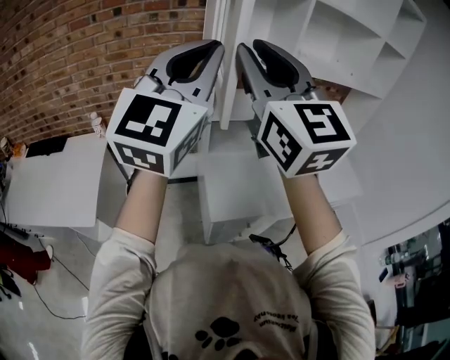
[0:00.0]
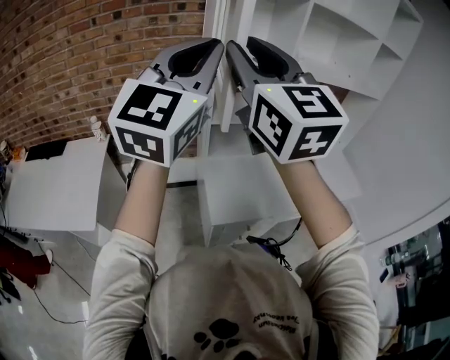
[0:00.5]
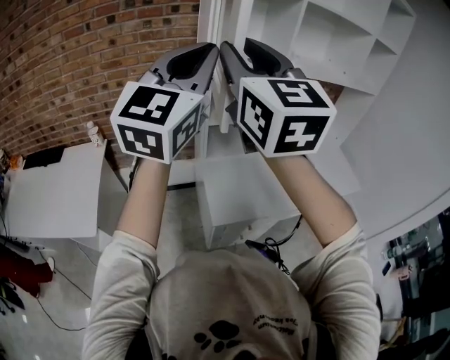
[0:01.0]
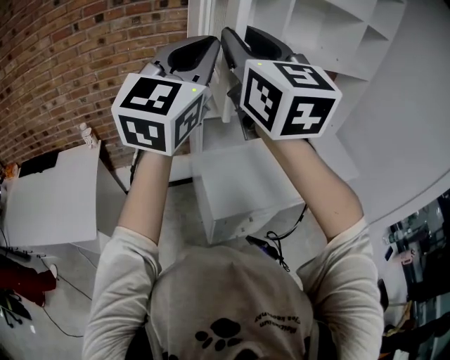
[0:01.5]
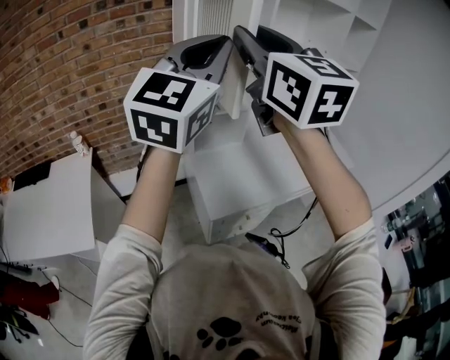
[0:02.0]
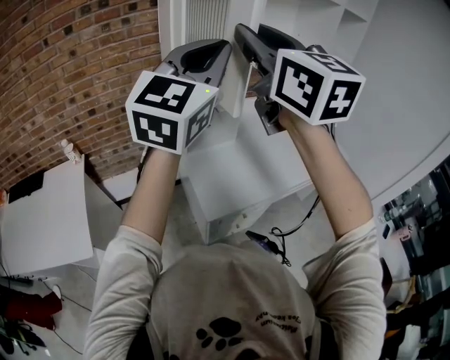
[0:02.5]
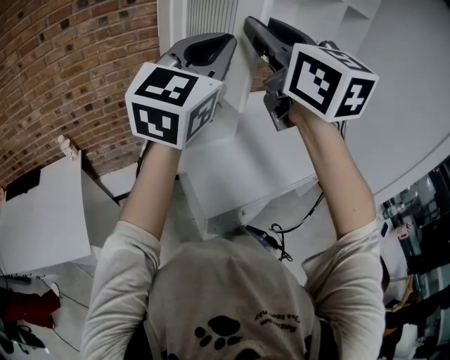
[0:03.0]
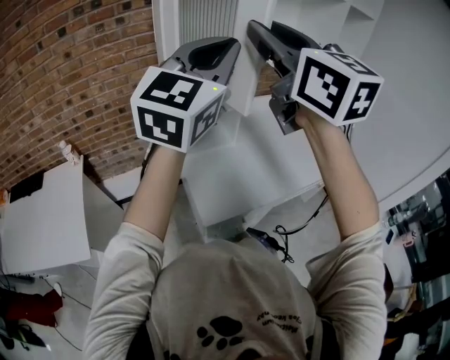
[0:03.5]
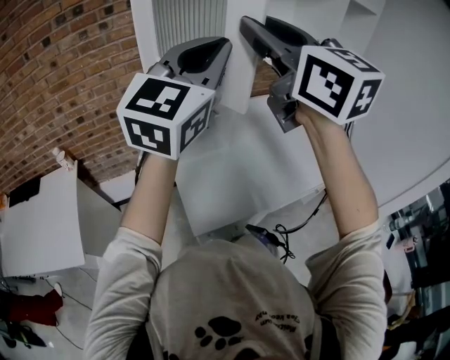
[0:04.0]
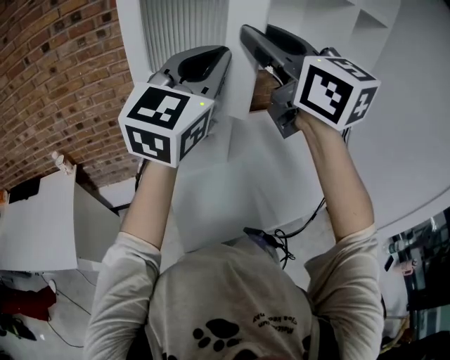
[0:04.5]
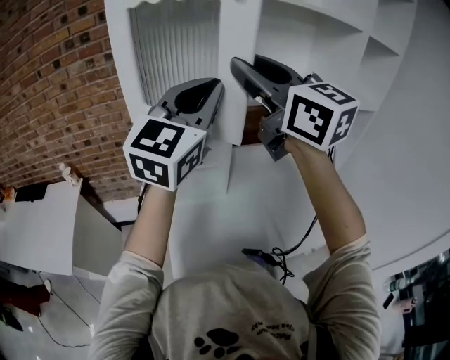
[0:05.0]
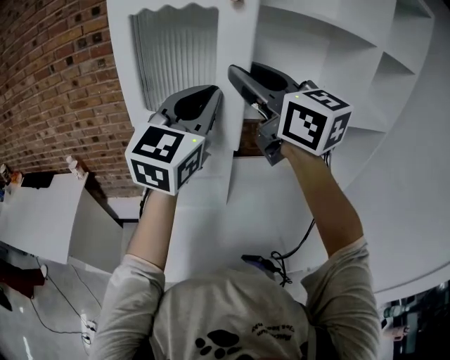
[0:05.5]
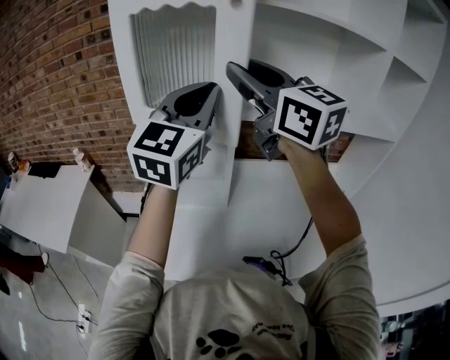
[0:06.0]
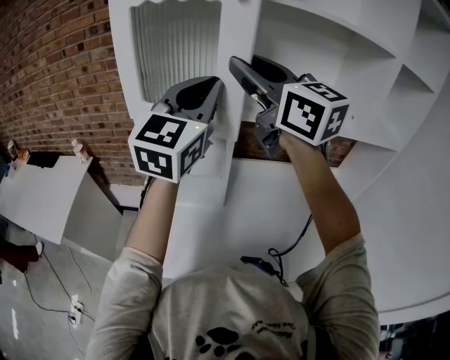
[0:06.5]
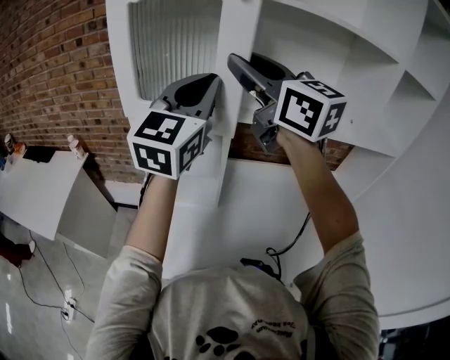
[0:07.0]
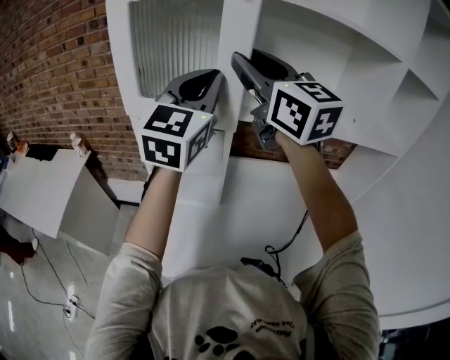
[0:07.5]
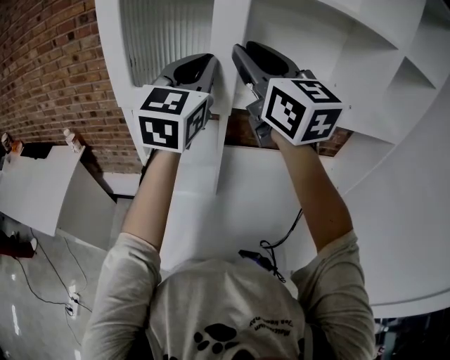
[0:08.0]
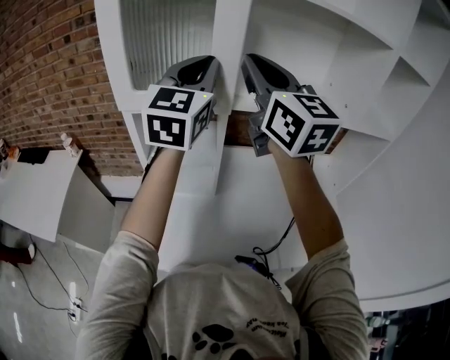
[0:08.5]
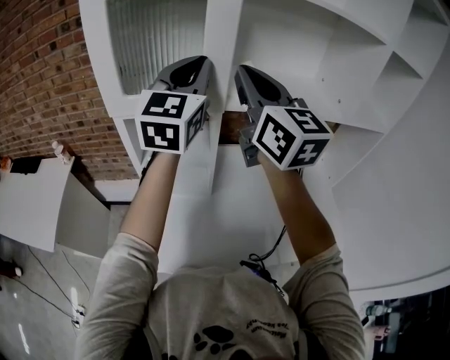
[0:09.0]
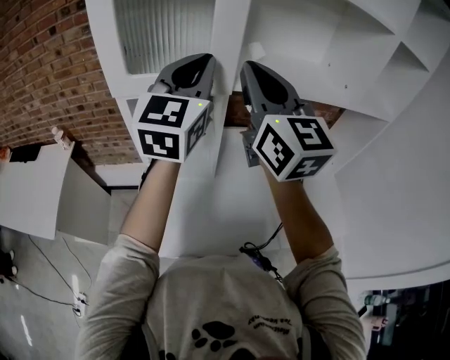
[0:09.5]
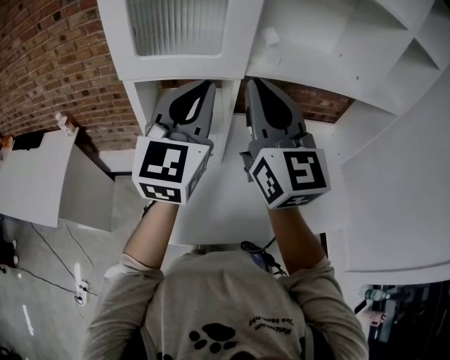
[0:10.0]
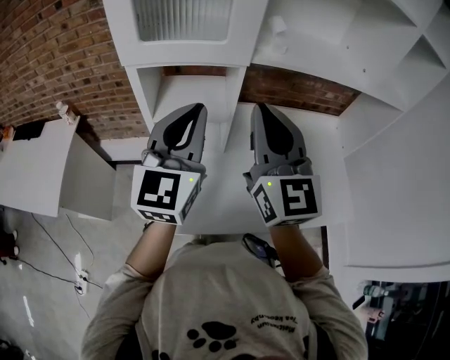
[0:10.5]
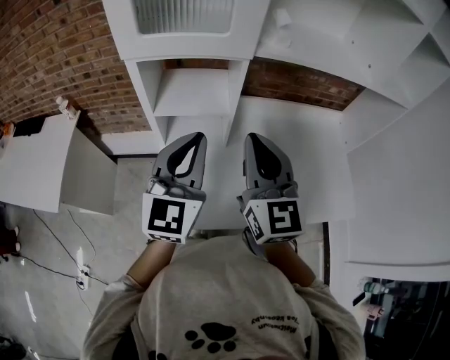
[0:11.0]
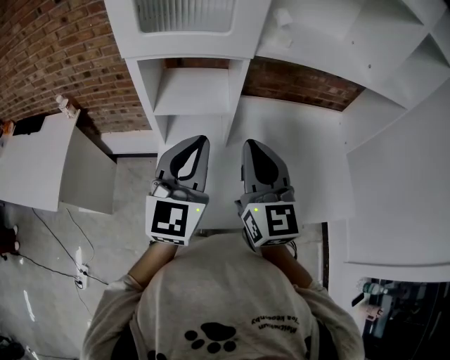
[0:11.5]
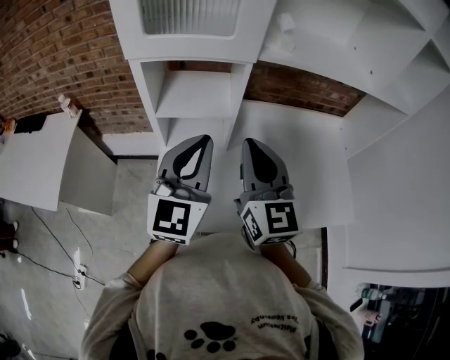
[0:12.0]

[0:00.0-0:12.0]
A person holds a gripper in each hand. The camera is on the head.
0.0 to 2.0 s: The left gripper changes place by approximately 5 cm.
2.0 to 4.0 s: The right gripper moves to the right and forward, approximately 15 cm. Meanwhile the left gripper goes some 15 cm forward and to the right.
4.0 to 6.0 s: Both grippers move forward and to the right, roughly 15 cm. The right gripper swivels some 30 degrees. Meanwhile the left gripper rotates some 20 degrees.
6.0 to 8.0 s: The right gripper changes place by approximately 5 cm. Meanwhile the left gripper moves forward, roughly 5 cm.
8.0 to 10.0 s: The right gripper travels downward and backward by approximately 10 cm, and closes its fingers; the left gripper is displaced backward and downward by some 10 cm.
10.0 to 12.0 s: The right gripper travels downward by roughly 15 cm, while the left gripper is displaced downward and backward by roughly 15 cm.

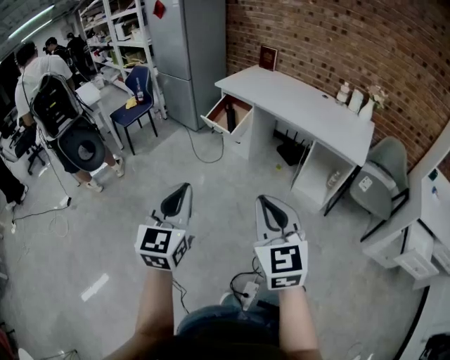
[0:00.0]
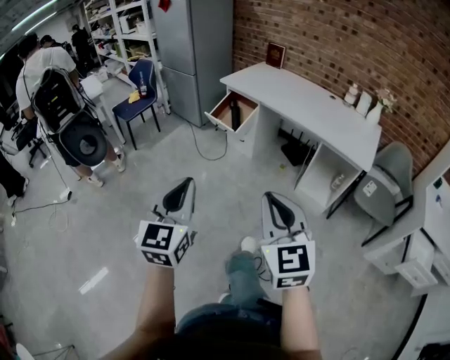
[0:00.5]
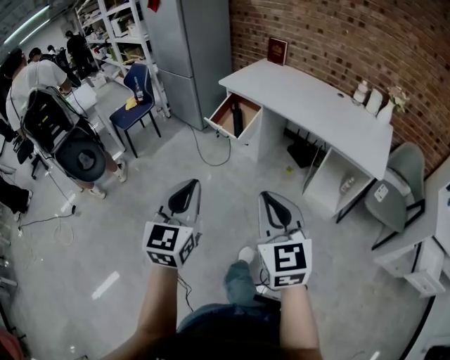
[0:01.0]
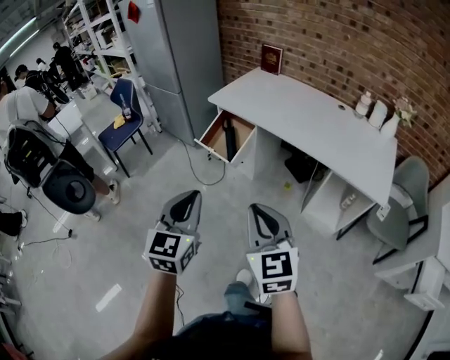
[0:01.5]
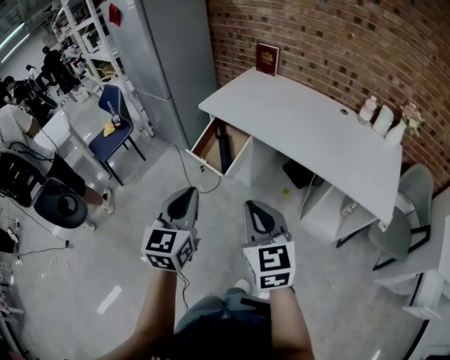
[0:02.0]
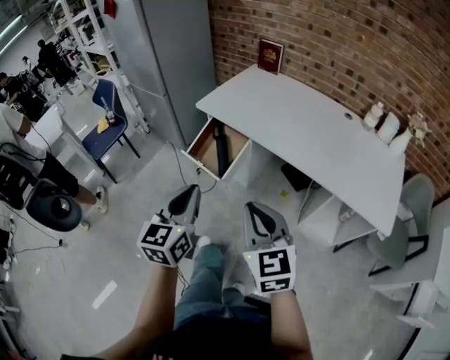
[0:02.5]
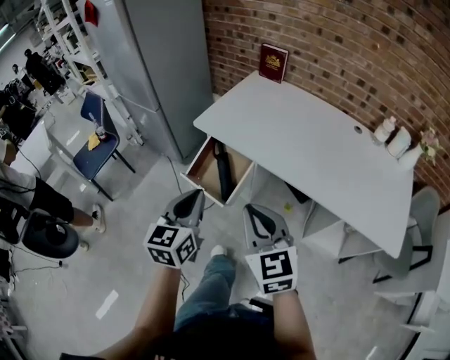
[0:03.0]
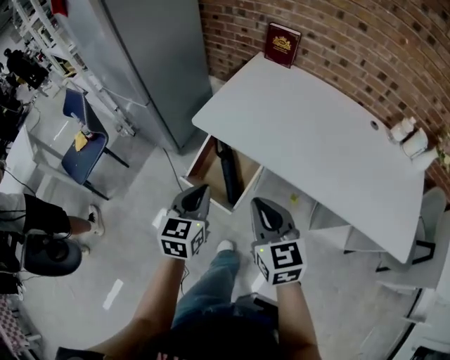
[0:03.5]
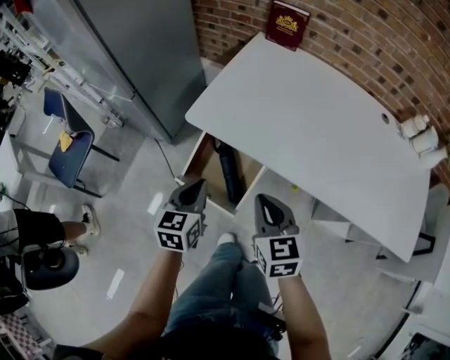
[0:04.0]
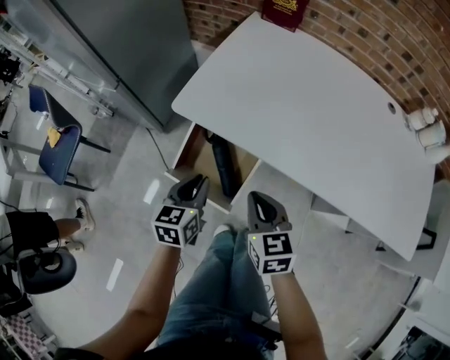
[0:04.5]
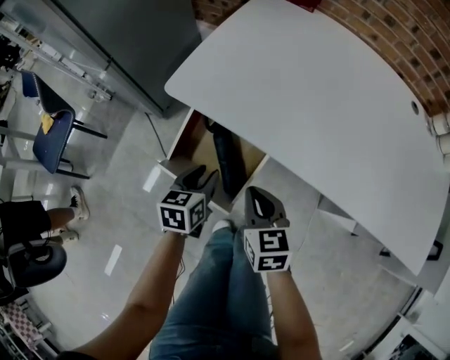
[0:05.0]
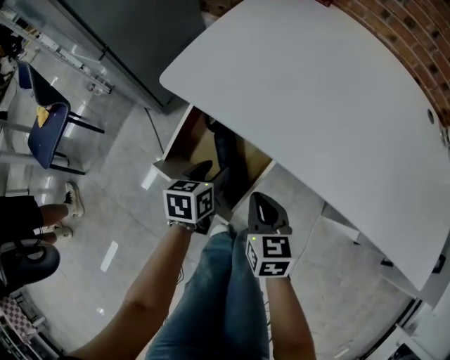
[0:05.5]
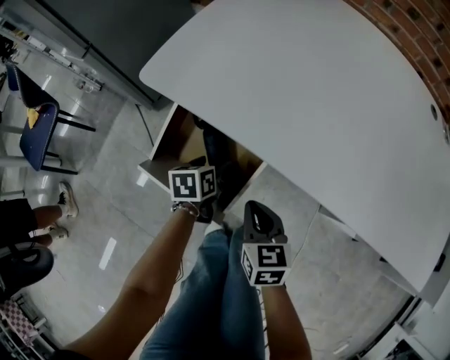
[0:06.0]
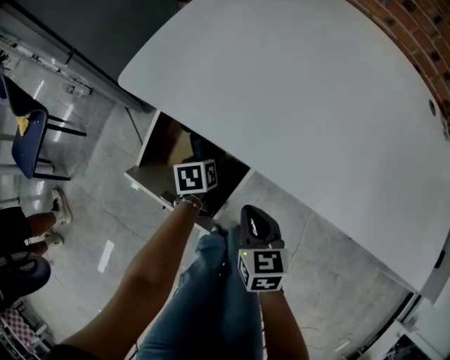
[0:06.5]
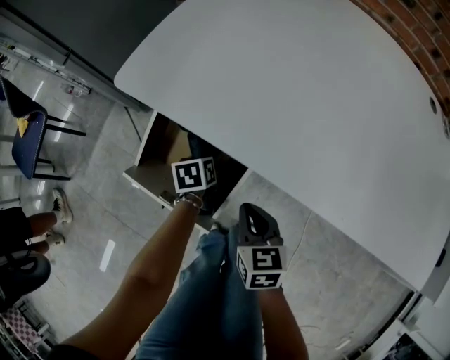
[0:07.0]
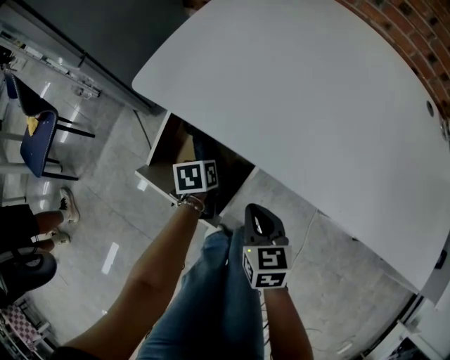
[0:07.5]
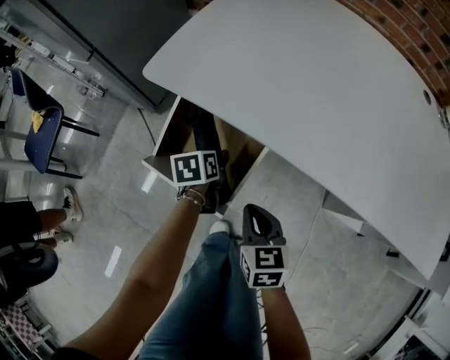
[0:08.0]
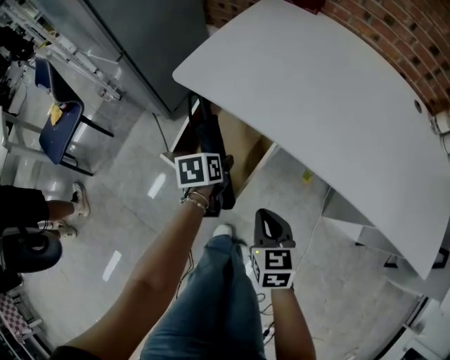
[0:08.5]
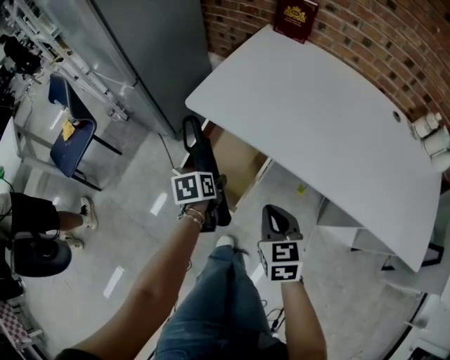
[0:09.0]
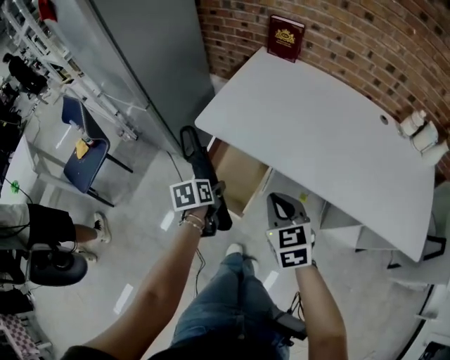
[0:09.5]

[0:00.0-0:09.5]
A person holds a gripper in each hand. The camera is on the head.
0.0 to 2.0 s: Both grippers are carried forward, approximately 50 cm.
2.0 to 4.0 s: The pair of grippers is taken forward, about 40 cm. Both grippers move downward, approximately 20 cm. The left gripper swivels roughly 20 degrees.
4.0 to 5.5 s: Both grippers move downward, some 25 cm. The left gripper rotates approximately 20 degrees, and opens.
5.5 to 7.5 s: The left gripper goes roughly 10 cm downward.
7.5 to 9.5 s: The right gripper shifts about 25 cm upward, and turns by approximately 20 degrees; the left gripper moves upward and backward, about 30 cm.

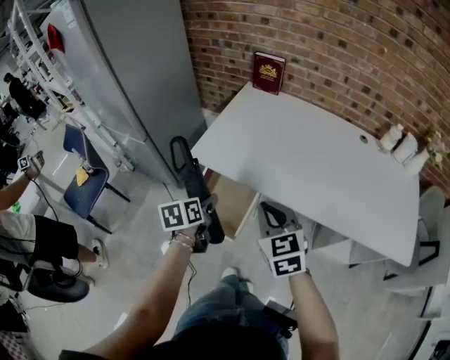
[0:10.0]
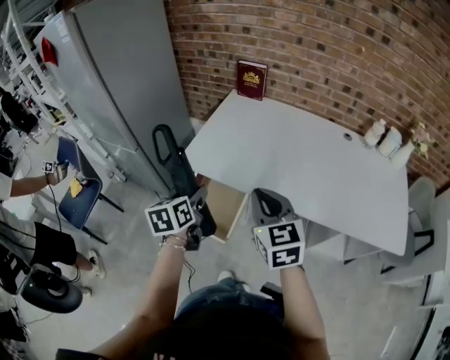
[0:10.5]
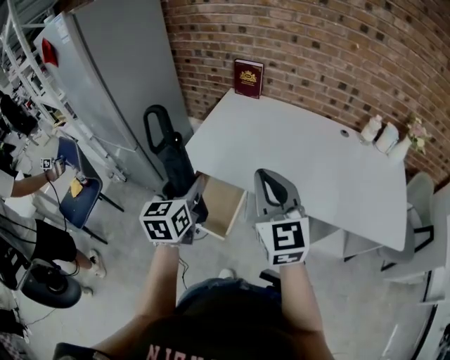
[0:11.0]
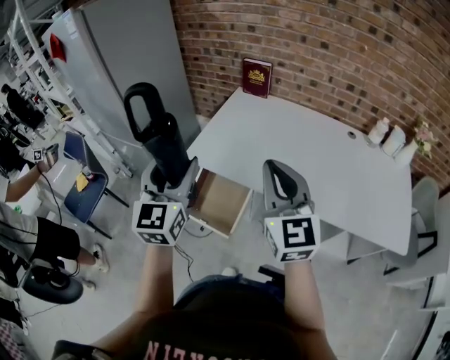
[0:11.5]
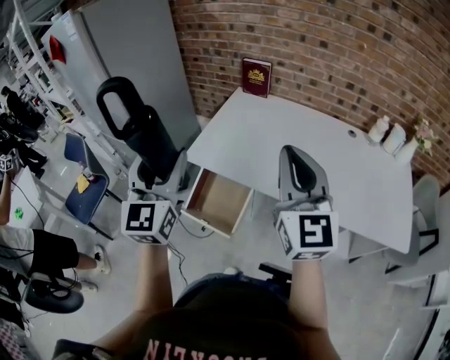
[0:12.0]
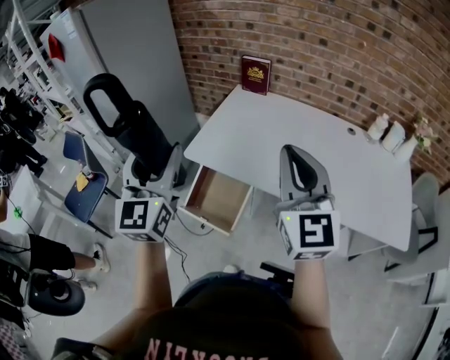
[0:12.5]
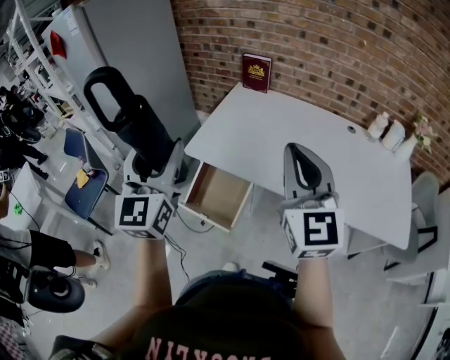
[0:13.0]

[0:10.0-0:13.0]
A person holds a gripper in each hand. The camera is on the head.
10.0 to 11.5 s: The left gripper travels upward by some 25 cm, and tilts its fingers roughly 40 degrees upward, while the right gripper goes approximately 15 cm upward, and turns by about 30 degrees.
11.5 to 13.0 s: Both grippers move upward, about 5 cm.

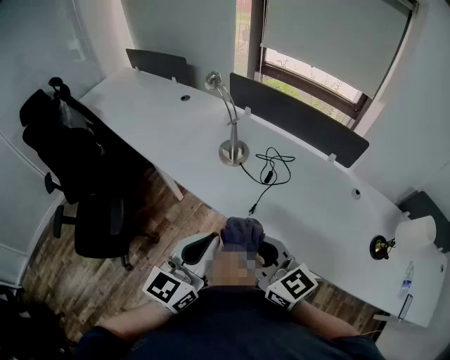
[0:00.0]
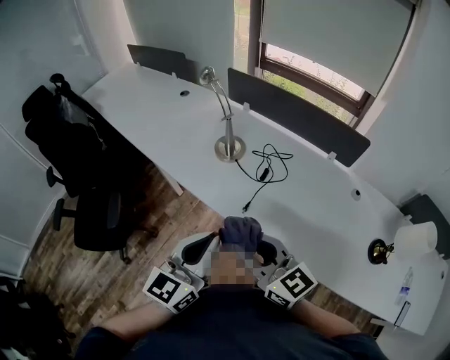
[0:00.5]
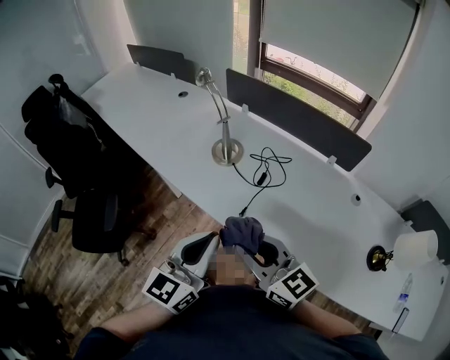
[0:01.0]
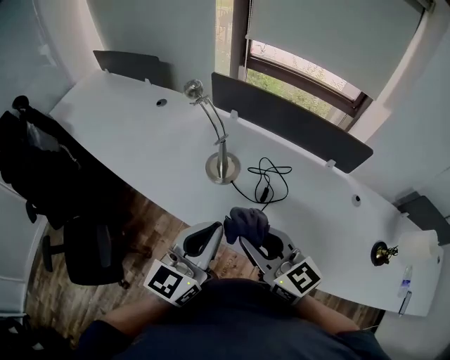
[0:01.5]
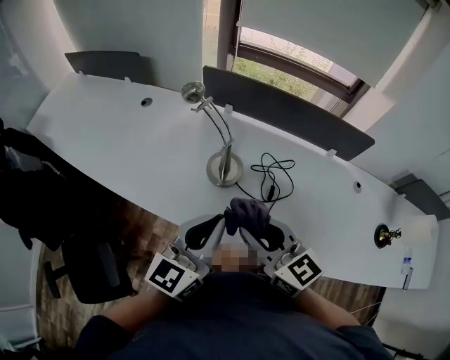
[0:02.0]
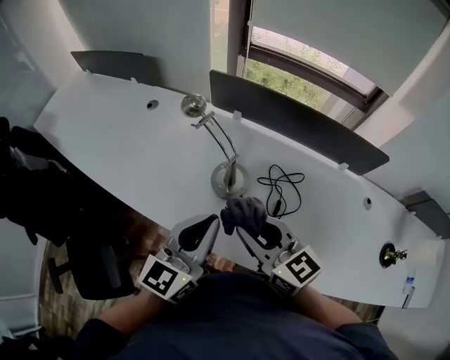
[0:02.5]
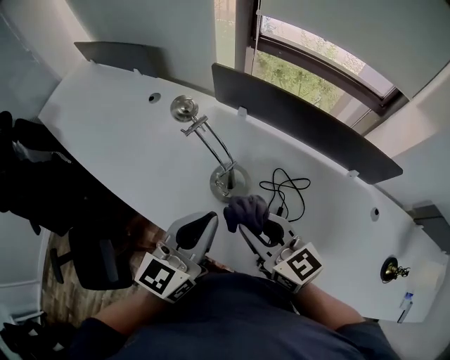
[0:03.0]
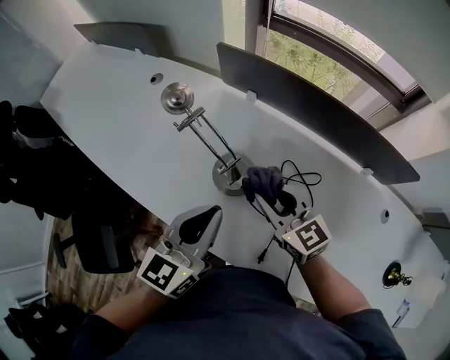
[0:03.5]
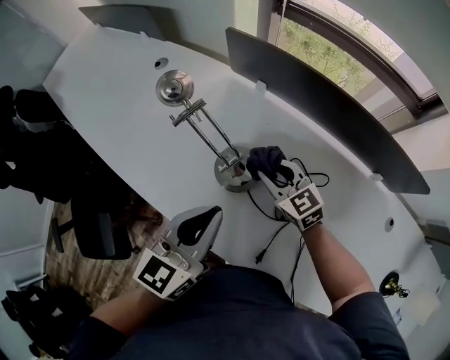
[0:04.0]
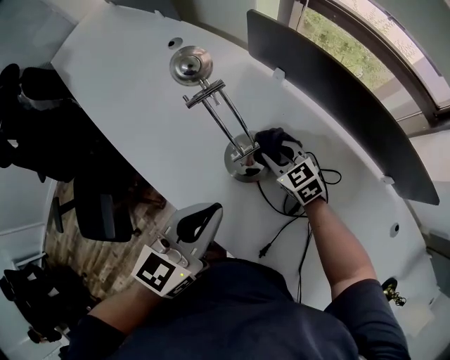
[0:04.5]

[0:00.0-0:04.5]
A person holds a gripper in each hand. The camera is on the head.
0.0 to 2.0 s: Both grippers travel together forward, roughly 25 cm.
2.0 to 4.5 s: The right gripper moves downward and forward, roughly 40 cm, and turns by approximately 40 degrees. The left gripper heads forward and downward, covering about 15 cm, and swivels roughly 20 degrees.
